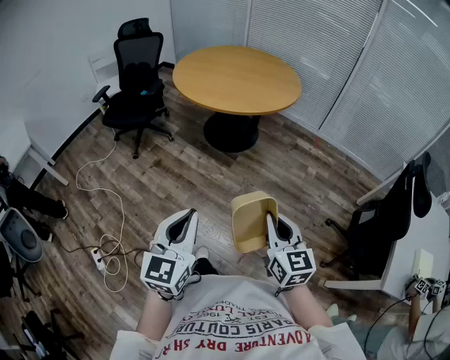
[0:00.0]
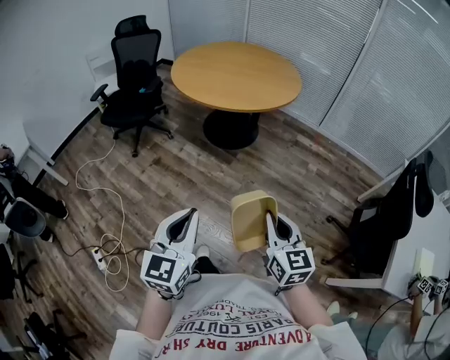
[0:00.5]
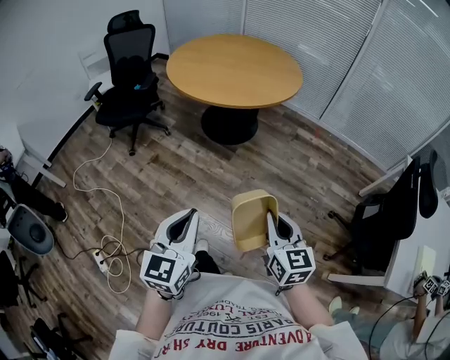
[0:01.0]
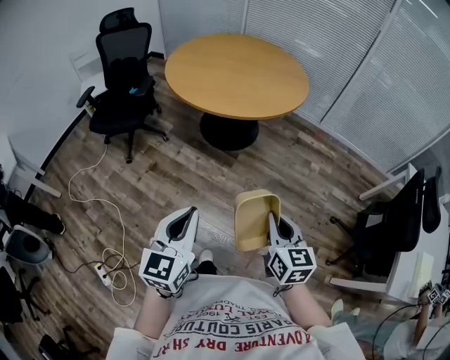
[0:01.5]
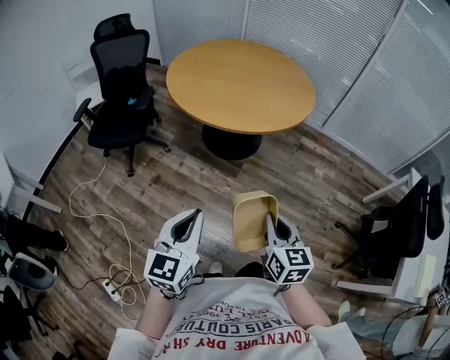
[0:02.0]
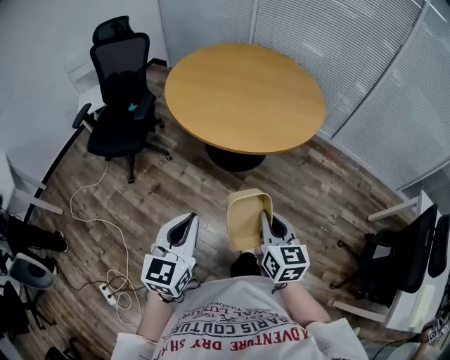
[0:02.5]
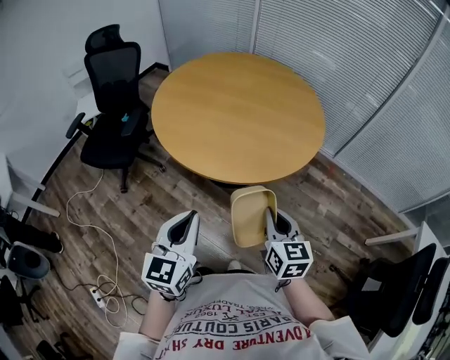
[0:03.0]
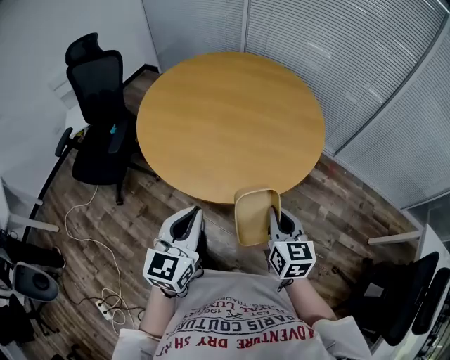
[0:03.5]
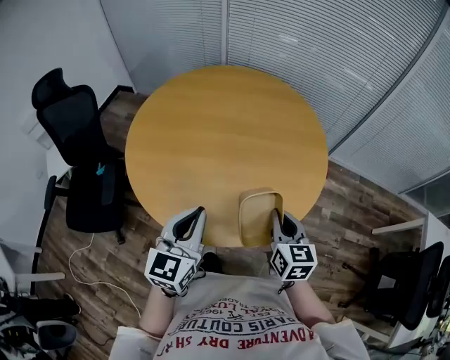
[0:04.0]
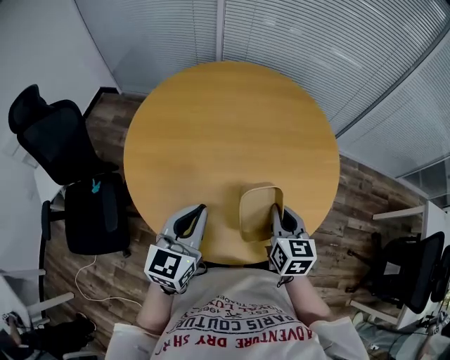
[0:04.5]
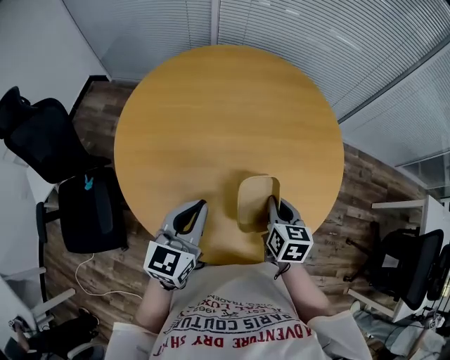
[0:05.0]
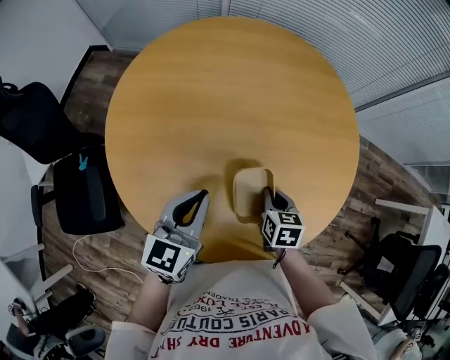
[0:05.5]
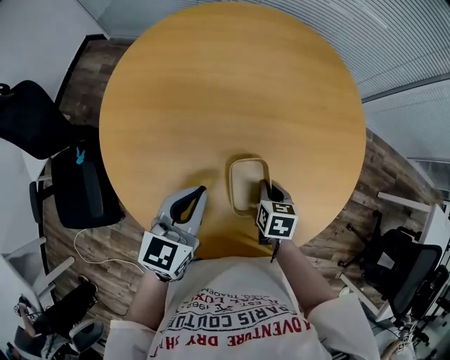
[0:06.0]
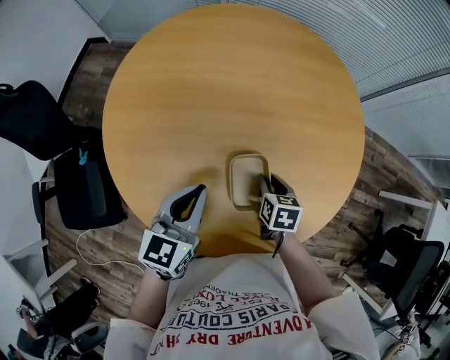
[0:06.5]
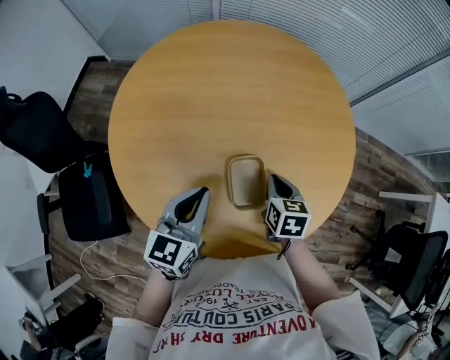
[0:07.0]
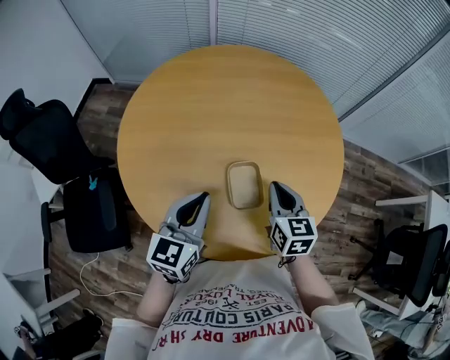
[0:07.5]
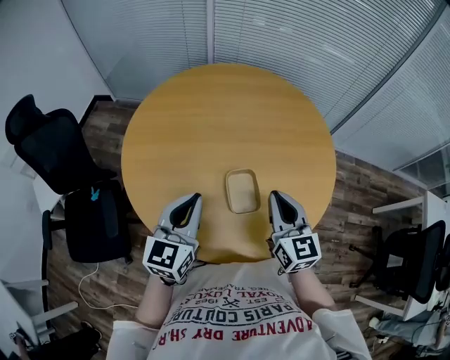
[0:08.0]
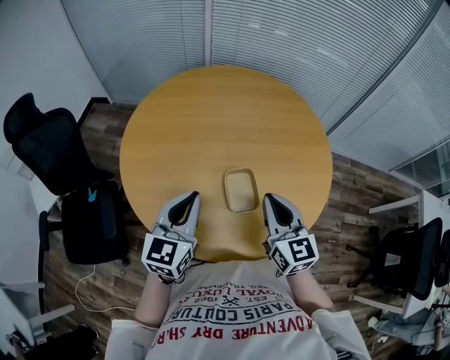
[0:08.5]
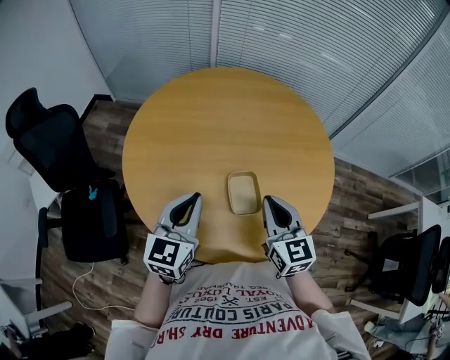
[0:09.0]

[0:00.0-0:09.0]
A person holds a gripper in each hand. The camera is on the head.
0:00.0 to 0:02.0: The grippers both shift forward and to the left by approximately 25 cm.
0:02.0 to 0:04.5: Both grippers are carried forward, about 70 cm.
0:04.5 to 0:07.0: The right gripper heads downward and forward, covering about 15 cm, and opens and closes again; the left gripper heads forward and downward, covering about 10 cm.
0:07.0 to 0:09.0: The left gripper shifts about 10 cm upward and backward. Meanwhile the right gripper moves upward and backward, roughly 20 cm, and tilts its fingers some 30 degrees upward.

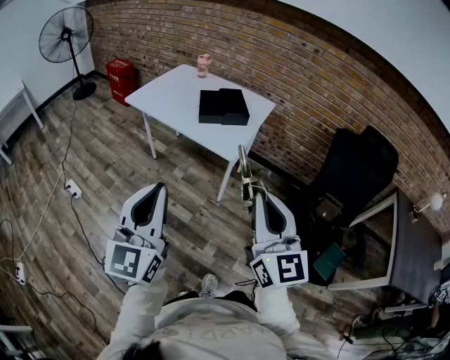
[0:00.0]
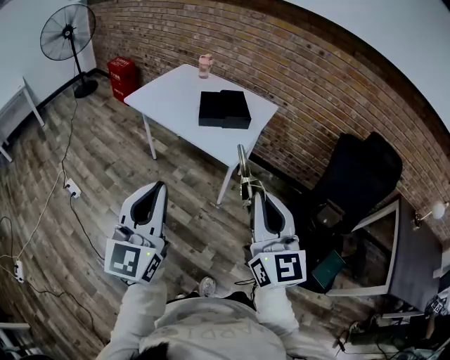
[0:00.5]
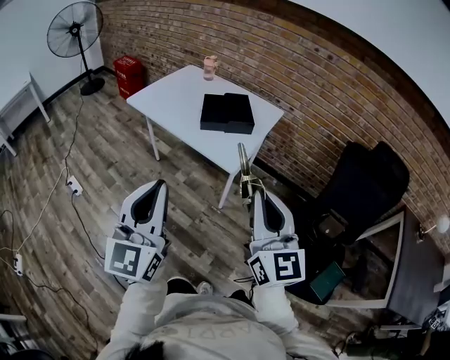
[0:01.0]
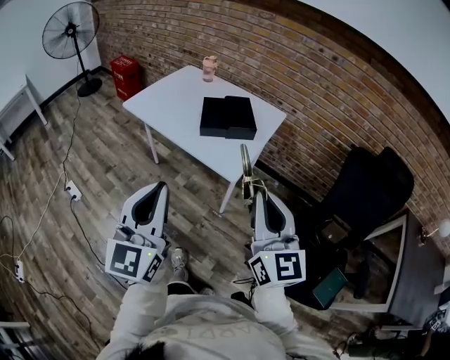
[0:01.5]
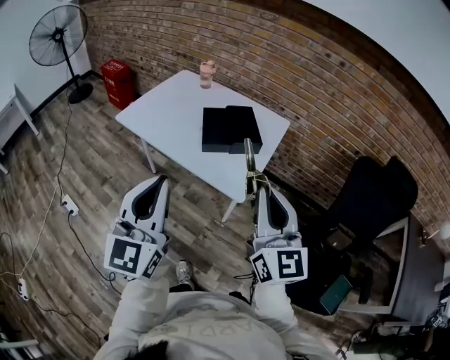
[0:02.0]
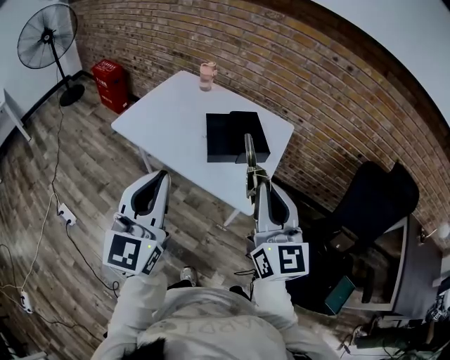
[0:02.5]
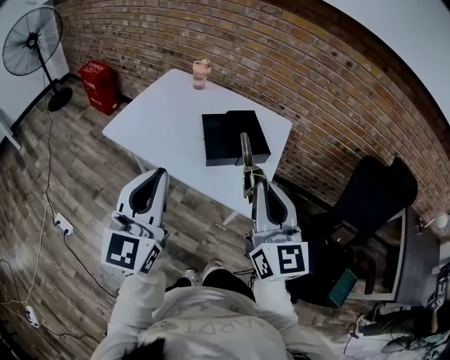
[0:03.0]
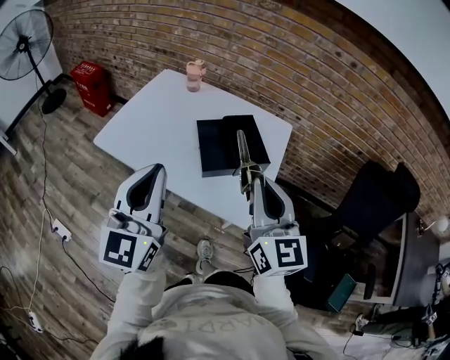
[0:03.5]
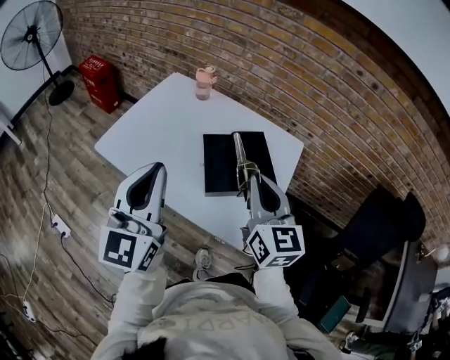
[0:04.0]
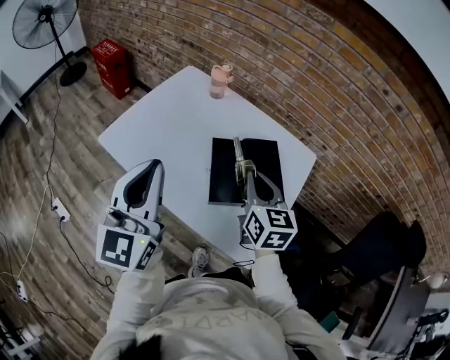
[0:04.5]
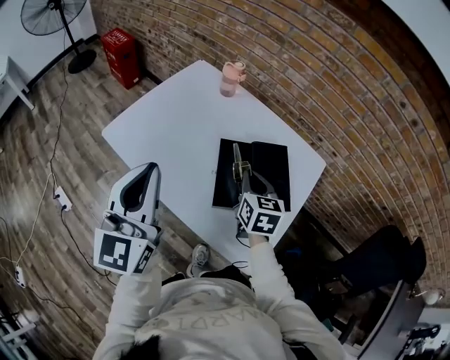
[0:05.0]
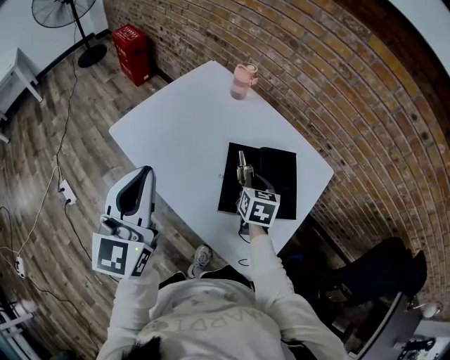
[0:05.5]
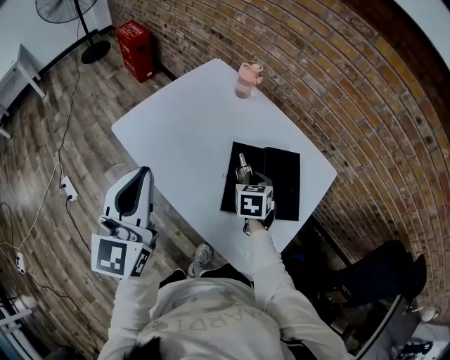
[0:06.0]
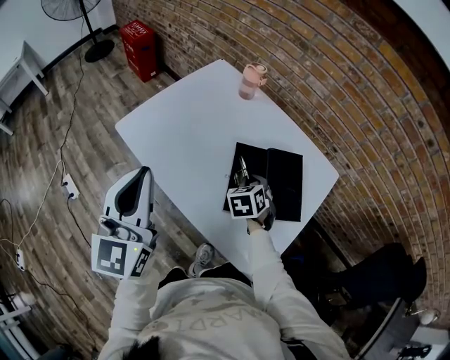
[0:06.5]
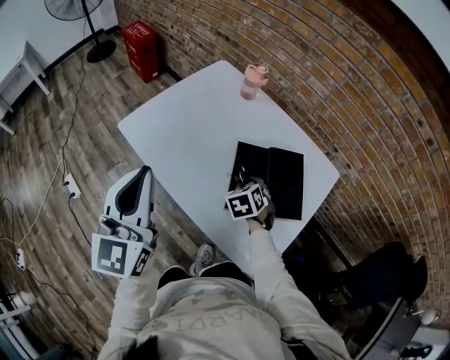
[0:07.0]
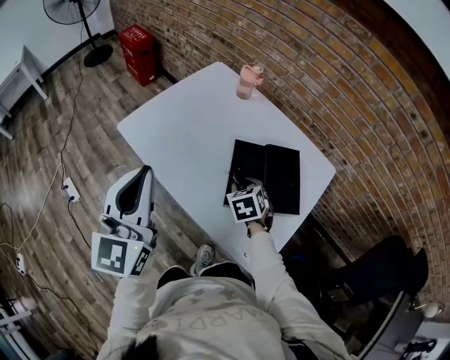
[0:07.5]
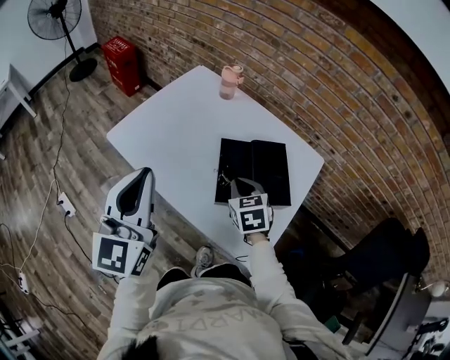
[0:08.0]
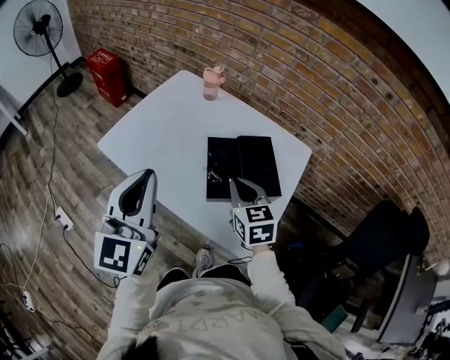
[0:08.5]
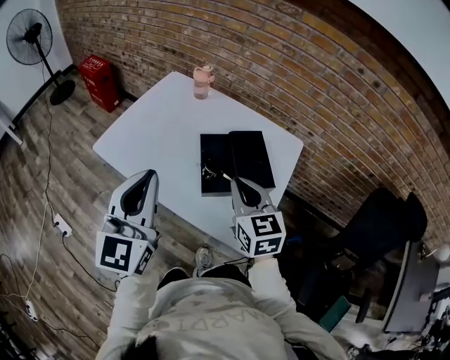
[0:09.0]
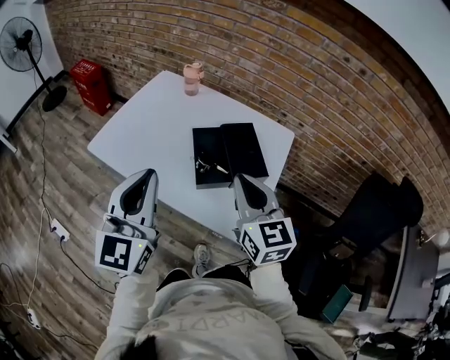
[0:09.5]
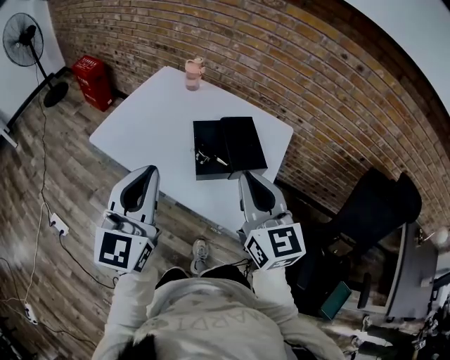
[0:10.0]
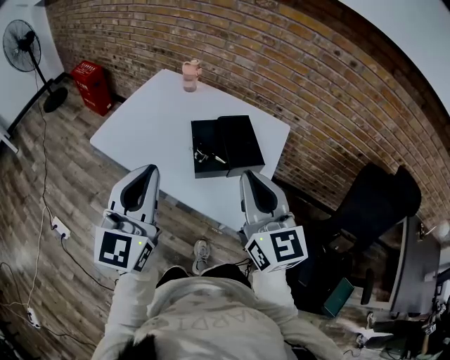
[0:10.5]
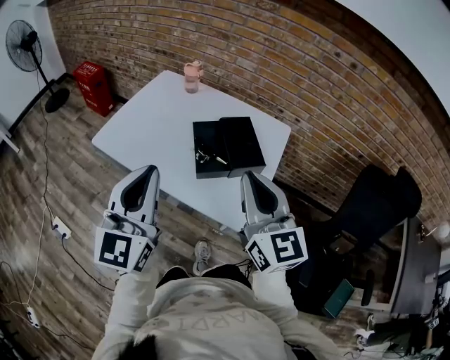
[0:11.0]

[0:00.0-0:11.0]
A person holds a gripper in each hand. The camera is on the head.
0:00.0 to 0:02.0: Both grippers travel together forward, approximately 25 cm.
0:02.0 to 0:03.5: The right gripper shifts roughly 20 cm forward and to the left; the left gripper travels forward by about 20 cm.
0:03.5 to 0:05.5: The left gripper moves forward and to the left, about 15 cm, and swivels some 20 degrees, while the right gripper shifts roughly 40 cm forward and downward, and angles its fingers downward, by about 40 degrees.
0:05.5 to 0:07.5: The right gripper is displaced to the left by some 5 cm, swivels about 30 degrees, and opens its fingers.
0:07.5 to 0:09.0: The left gripper goes roughly 5 cm to the right; the right gripper heads upward and backward, covering about 20 cm, points its fingers some 40 degrees further upward, and closes up.
0:09.0 to 0:11.0: The right gripper travels backward and upward by about 20 cm, and swivels approximately 20 degrees. The left gripper goes roughly 10 cm backward.

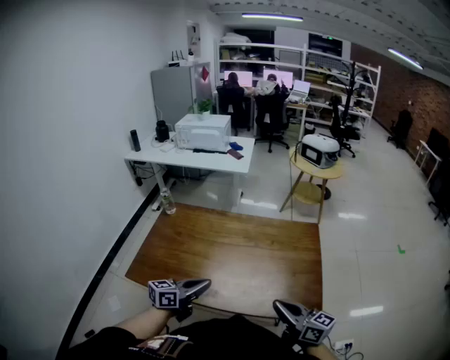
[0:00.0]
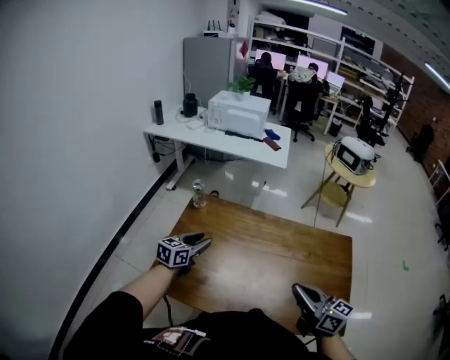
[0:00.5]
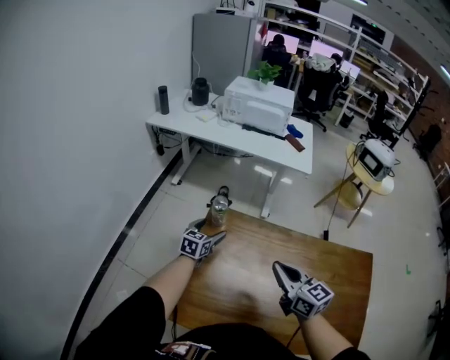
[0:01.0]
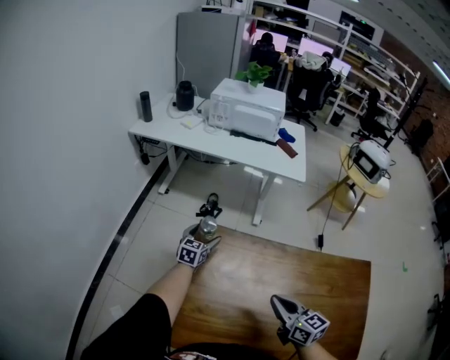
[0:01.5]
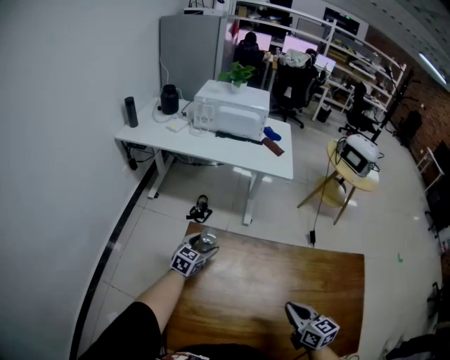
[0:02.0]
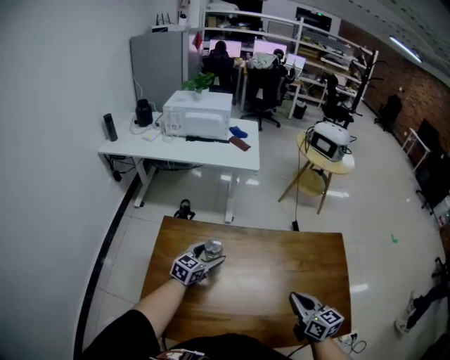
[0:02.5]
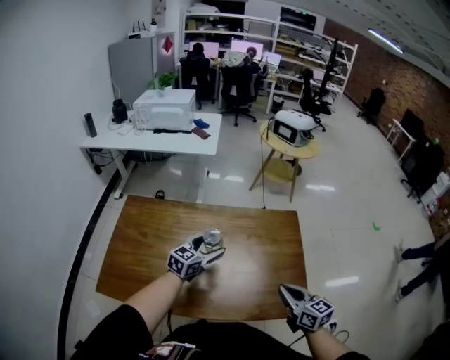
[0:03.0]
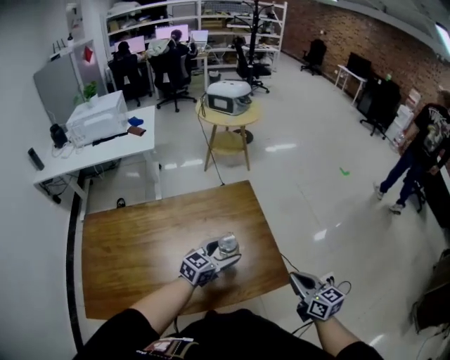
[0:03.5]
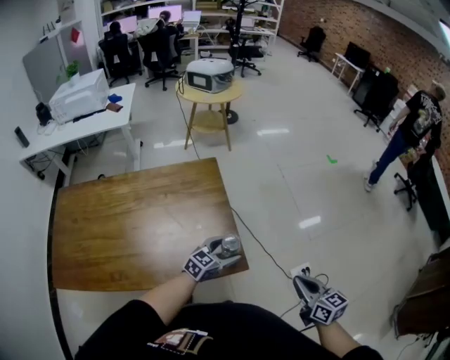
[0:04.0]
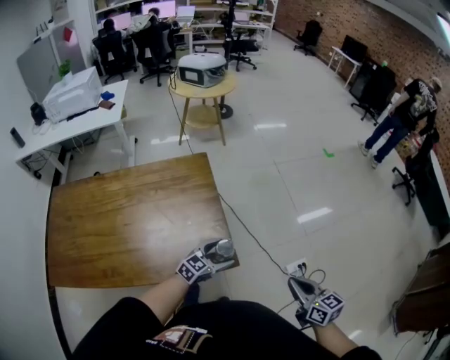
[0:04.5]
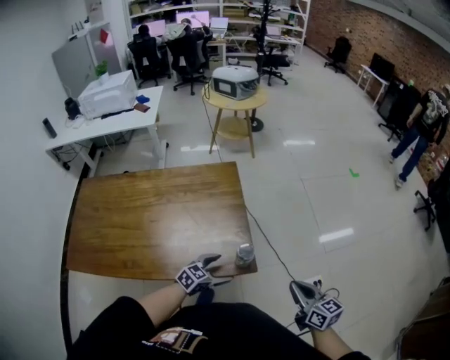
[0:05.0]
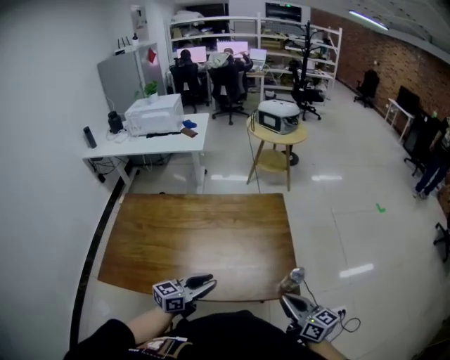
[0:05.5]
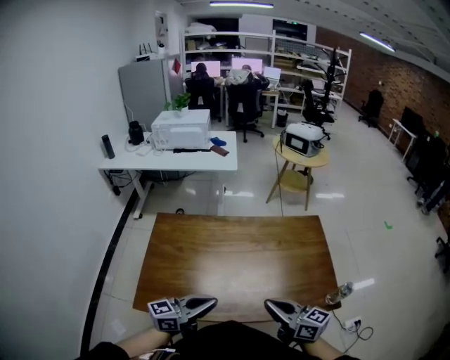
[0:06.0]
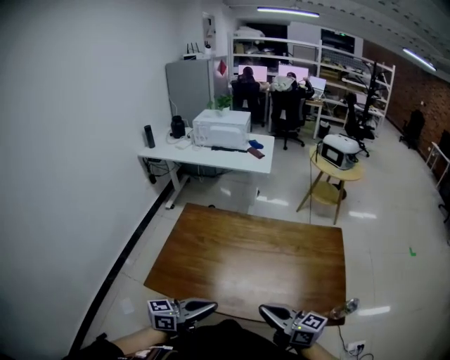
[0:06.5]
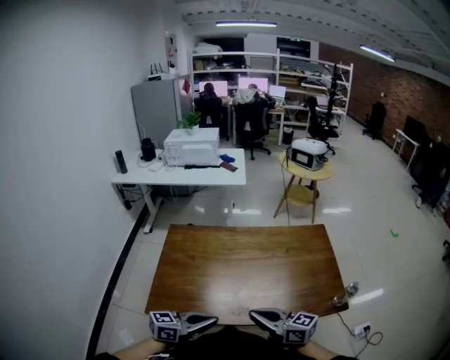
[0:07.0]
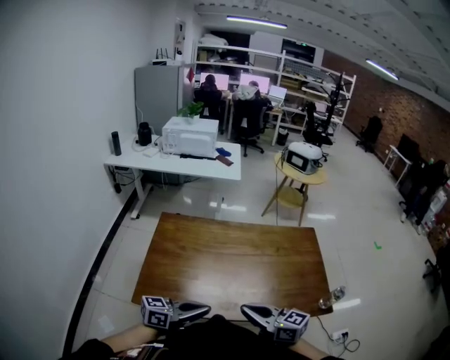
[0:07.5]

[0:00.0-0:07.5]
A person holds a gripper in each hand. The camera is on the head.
0:00.0 to 0:02.0: The two grippers travel together, forward and to the left, roughly 50 cm. The right gripper rotates roughly 30 degrees, while the left gripper changes its angle by approximately 40 degrees, and opens its fingers.
0:02.0 to 0:04.0: The two grippers travel together, approximately 90 cm. The left gripper changes its angle by about 40 degrees. Meanwhile the right gripper turns by approximately 30 degrees.
0:04.0 to 0:05.5: The right gripper is displaced to the left by approximately 25 cm, and changes its angle by some 30 degrees. Meanwhile the left gripper goes some 30 cm to the left and backward, rotates roughly 30 degrees, and closes its fingers.
0:05.5 to 0:07.5: Both grippers travel together to the left, about 35 cm. The right gripper swivels some 20 degrees.
